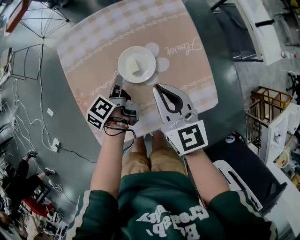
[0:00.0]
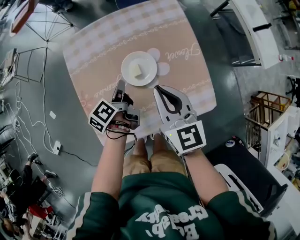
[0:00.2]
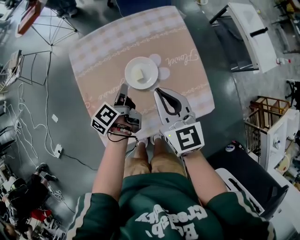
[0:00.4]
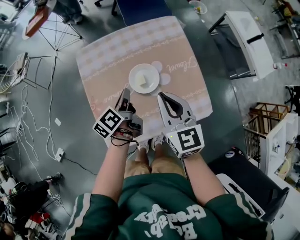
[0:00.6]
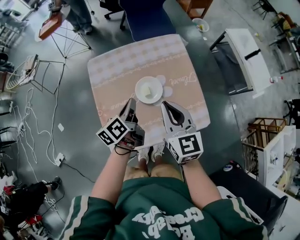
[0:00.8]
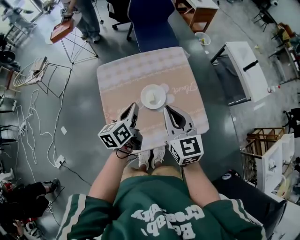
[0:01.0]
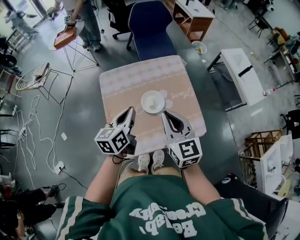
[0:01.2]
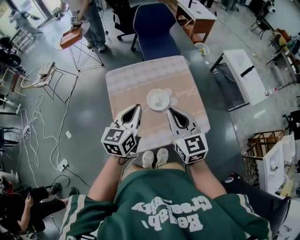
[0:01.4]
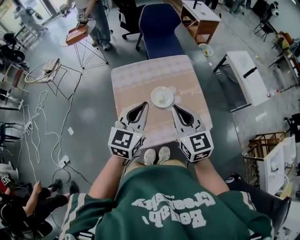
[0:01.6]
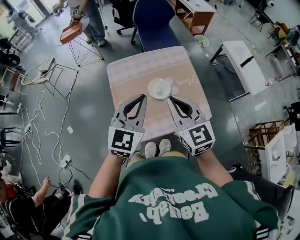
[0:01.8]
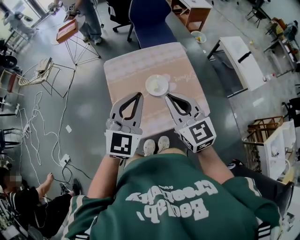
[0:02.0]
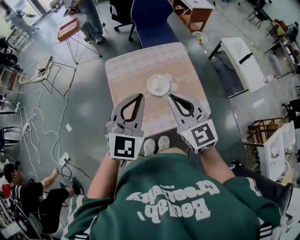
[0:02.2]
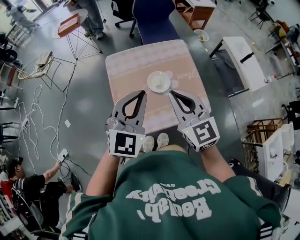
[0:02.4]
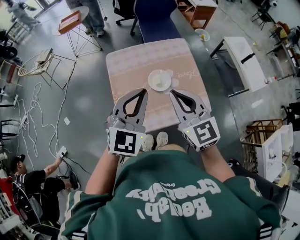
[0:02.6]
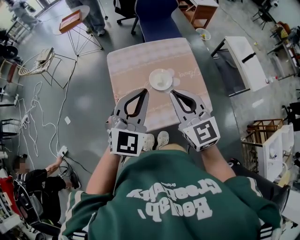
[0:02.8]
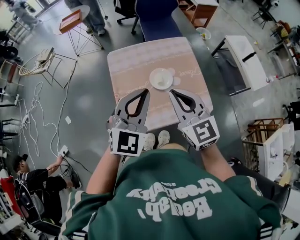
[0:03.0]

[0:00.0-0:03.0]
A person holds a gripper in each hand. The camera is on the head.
0:00.0 to 0:01.6: The right gripper shifts some 20 cm upward.

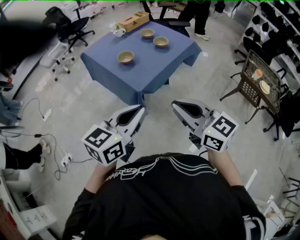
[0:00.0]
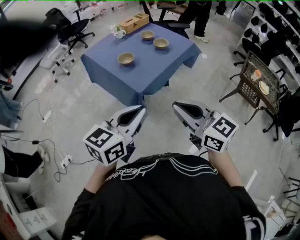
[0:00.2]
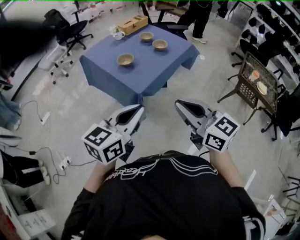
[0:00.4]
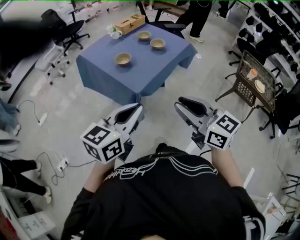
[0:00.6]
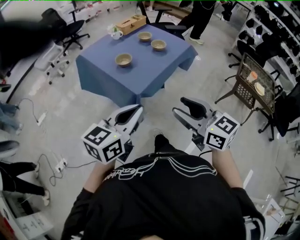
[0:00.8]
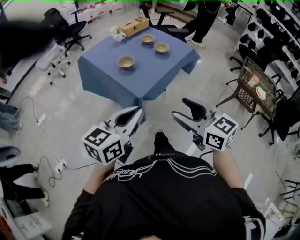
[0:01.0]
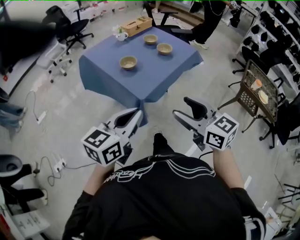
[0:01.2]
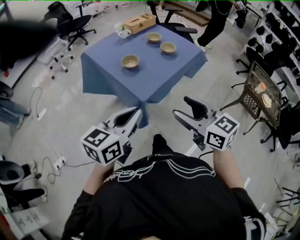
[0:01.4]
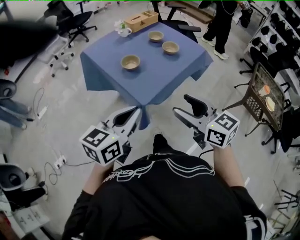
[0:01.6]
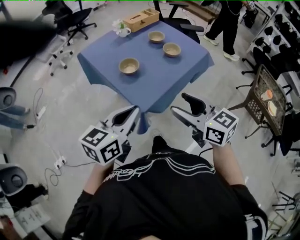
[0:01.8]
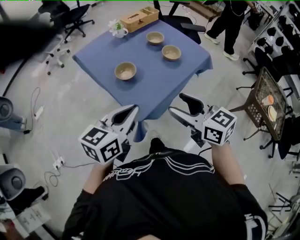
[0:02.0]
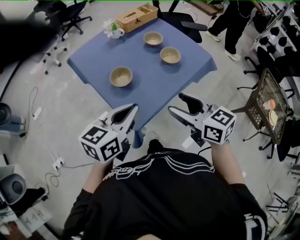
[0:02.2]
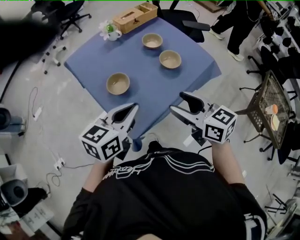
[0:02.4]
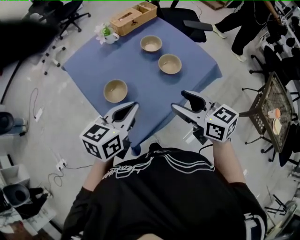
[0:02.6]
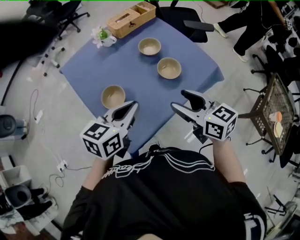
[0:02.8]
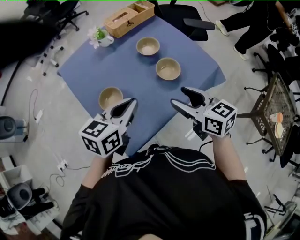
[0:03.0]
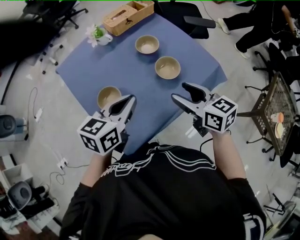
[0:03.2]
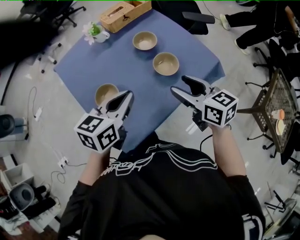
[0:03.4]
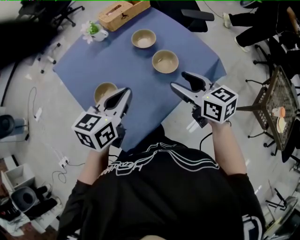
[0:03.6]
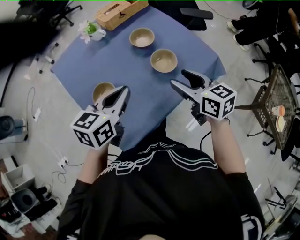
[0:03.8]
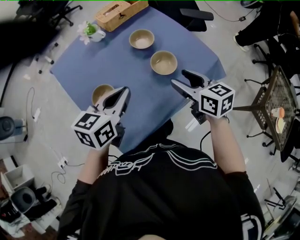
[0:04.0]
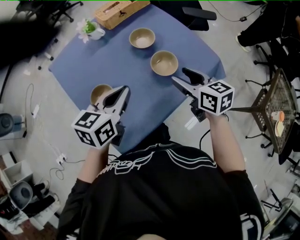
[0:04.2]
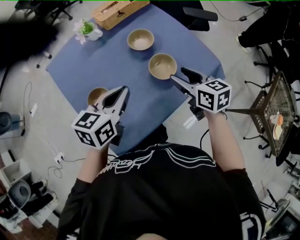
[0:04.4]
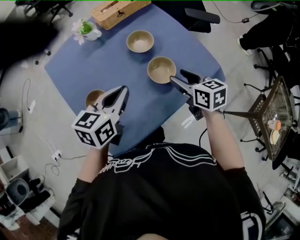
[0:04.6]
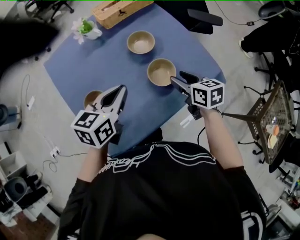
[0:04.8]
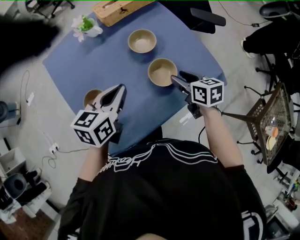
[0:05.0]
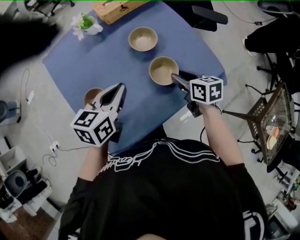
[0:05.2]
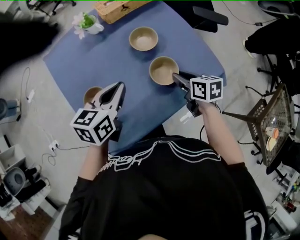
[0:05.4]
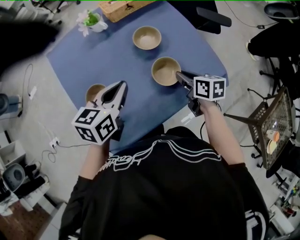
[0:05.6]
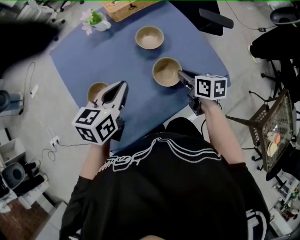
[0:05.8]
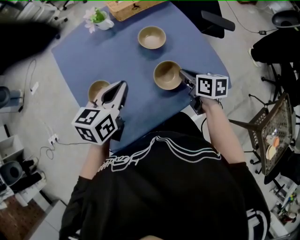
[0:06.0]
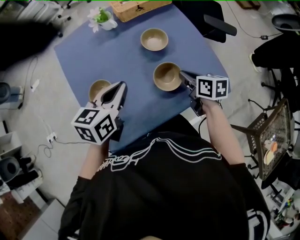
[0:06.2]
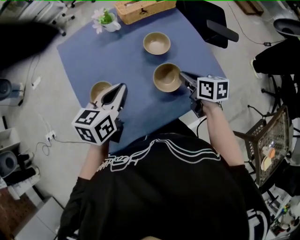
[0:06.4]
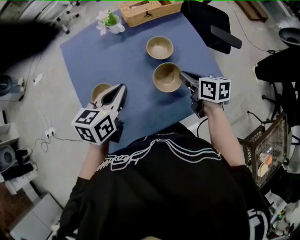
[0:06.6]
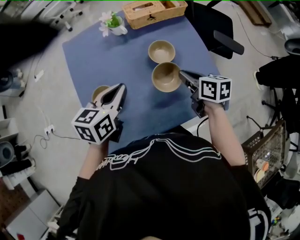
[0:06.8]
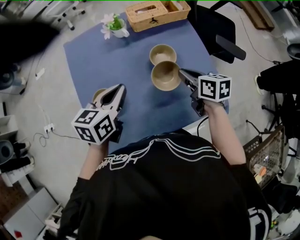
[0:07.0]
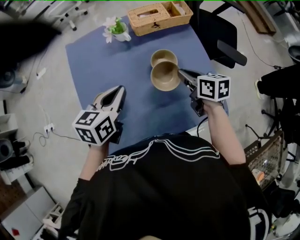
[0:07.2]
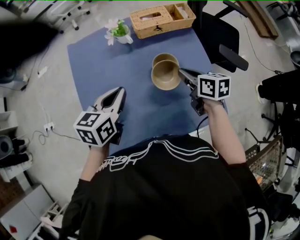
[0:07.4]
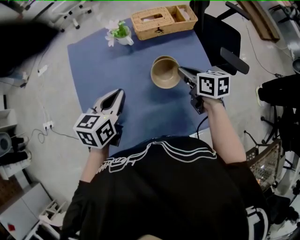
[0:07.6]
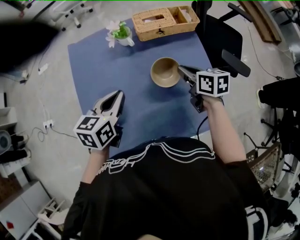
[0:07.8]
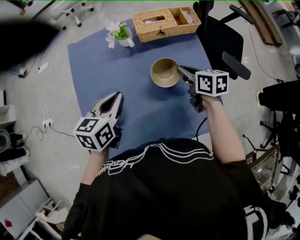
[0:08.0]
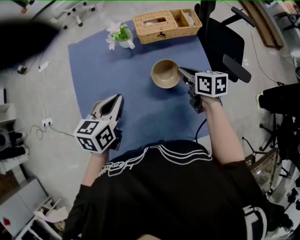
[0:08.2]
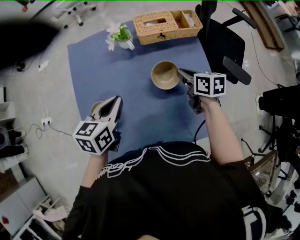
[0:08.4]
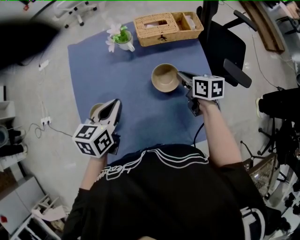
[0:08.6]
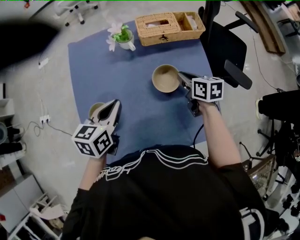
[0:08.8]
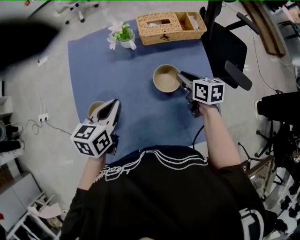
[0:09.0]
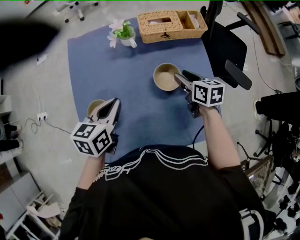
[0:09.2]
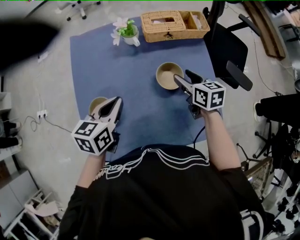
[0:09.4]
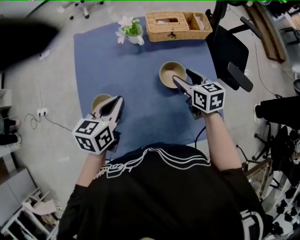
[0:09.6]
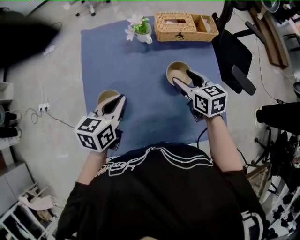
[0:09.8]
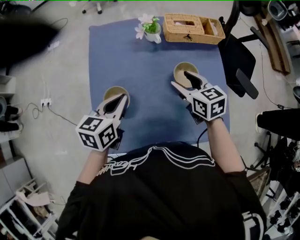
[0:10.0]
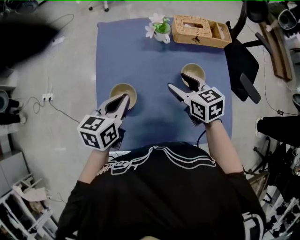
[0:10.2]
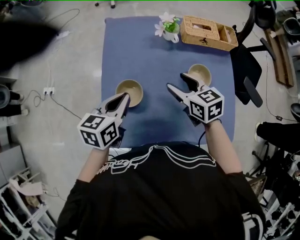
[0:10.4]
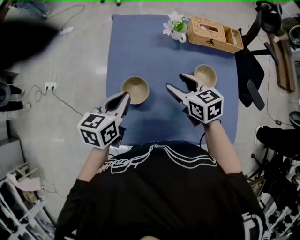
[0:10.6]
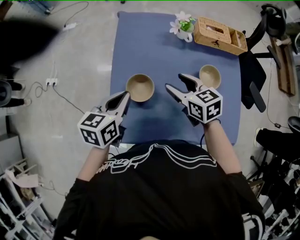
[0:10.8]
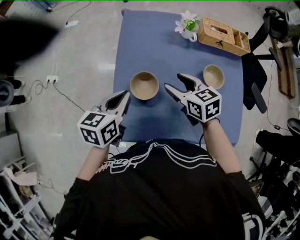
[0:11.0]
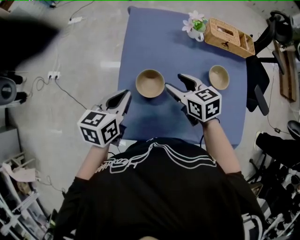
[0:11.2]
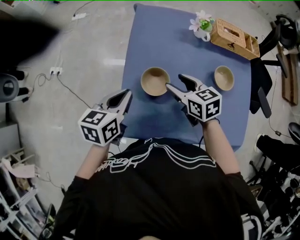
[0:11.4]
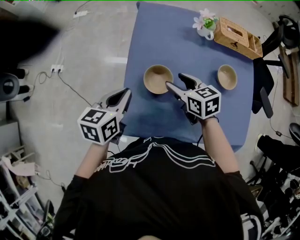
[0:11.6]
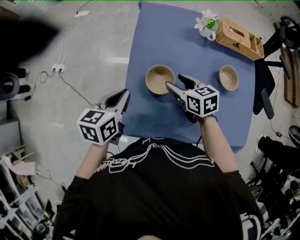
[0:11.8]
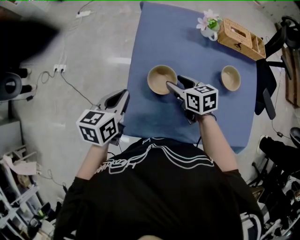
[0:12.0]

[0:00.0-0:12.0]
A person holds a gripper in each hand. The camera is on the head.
0:00.0 to 0:01.6: The right gripper goes about 15 cm forward and downward, and opens its fingers. The left gripper moves forward, downward and to the left, roughly 15 cm.
0:01.6 to 0:03.0: The grippers both shift forward by roughly 35 cm.
0:03.0 to 0:04.4: The left gripper shifts approximately 5 cm forward. Meanwhile the right gripper is displaced forward, downward and to the right by roughly 15 cm.
0:04.4 to 0:06.0: The right gripper shifts some 10 cm downward and forward, and closes up.
0:06.0 to 0:07.6: The left gripper goes some 10 cm forward. The right gripper is displaced forward and upward by about 20 cm.
0:07.6 to 0:09.0: The right gripper changes place by about 5 cm.
0:09.0 to 0:10.4: The right gripper shifts some 20 cm to the left, swivels some 30 degrees, and opens its fingers. Meanwhile the left gripper shifts about 15 cm to the left and backward.
0:10.4 to 0:12.0: The left gripper shifts about 15 cm to the left. Meanwhile the right gripper travels to the left and downward by approximately 15 cm.

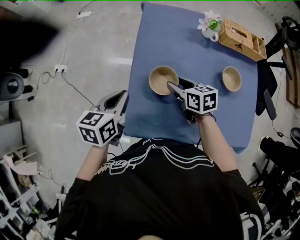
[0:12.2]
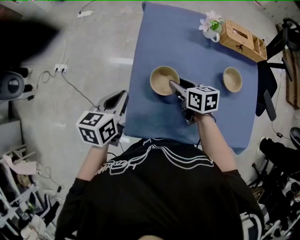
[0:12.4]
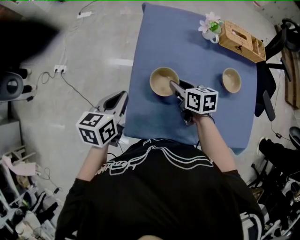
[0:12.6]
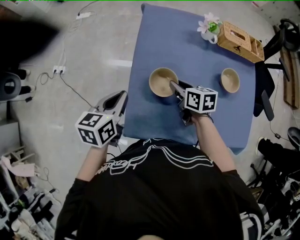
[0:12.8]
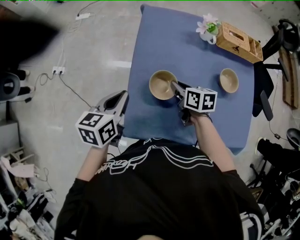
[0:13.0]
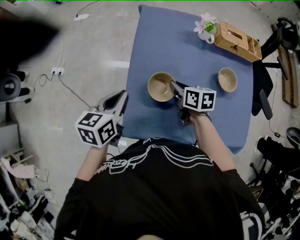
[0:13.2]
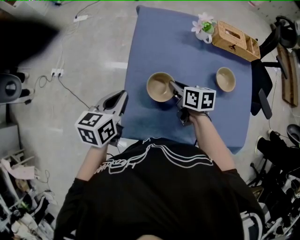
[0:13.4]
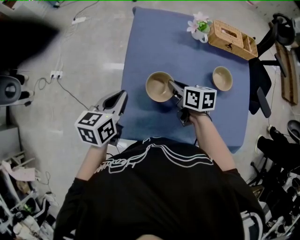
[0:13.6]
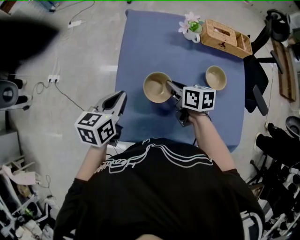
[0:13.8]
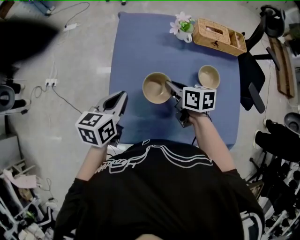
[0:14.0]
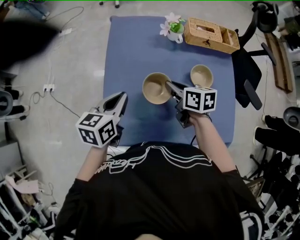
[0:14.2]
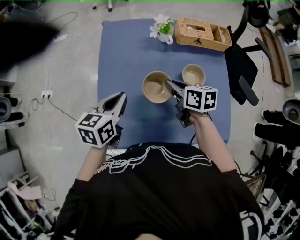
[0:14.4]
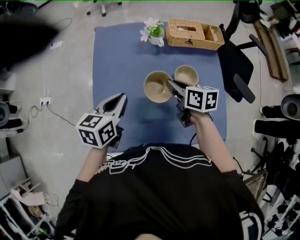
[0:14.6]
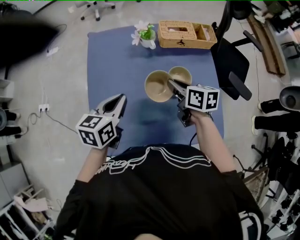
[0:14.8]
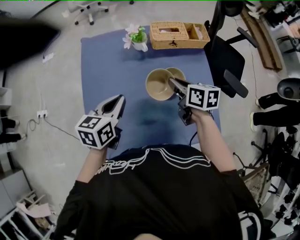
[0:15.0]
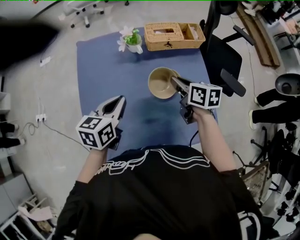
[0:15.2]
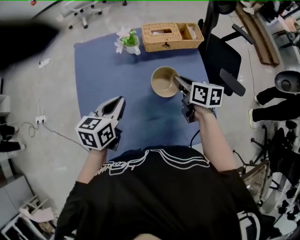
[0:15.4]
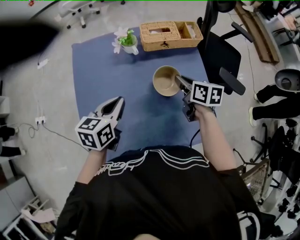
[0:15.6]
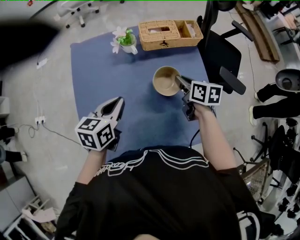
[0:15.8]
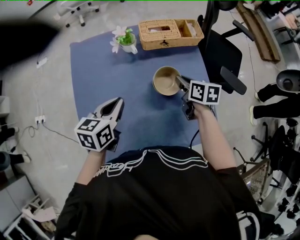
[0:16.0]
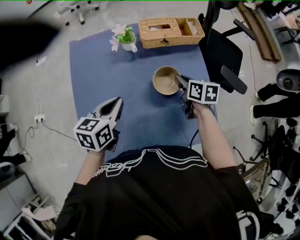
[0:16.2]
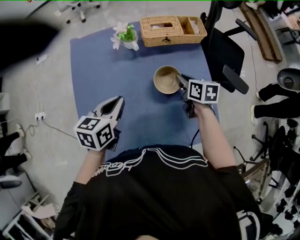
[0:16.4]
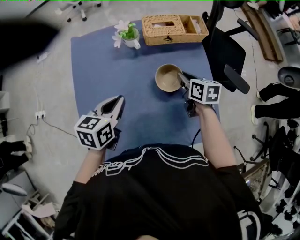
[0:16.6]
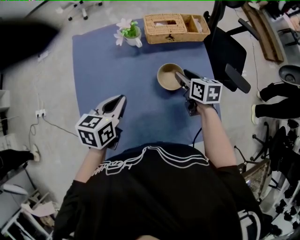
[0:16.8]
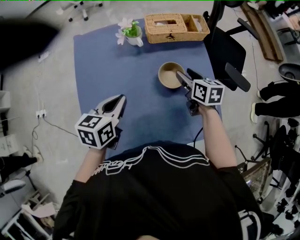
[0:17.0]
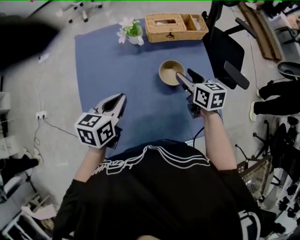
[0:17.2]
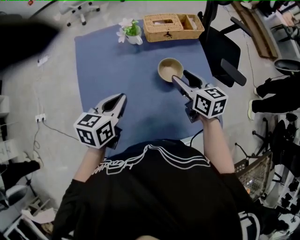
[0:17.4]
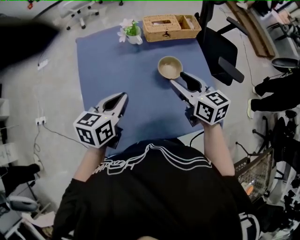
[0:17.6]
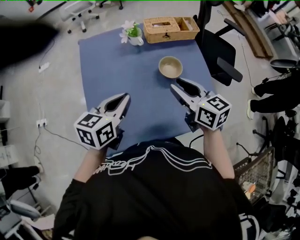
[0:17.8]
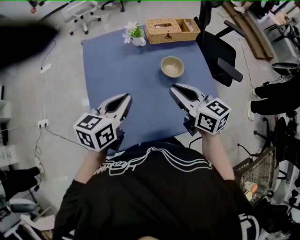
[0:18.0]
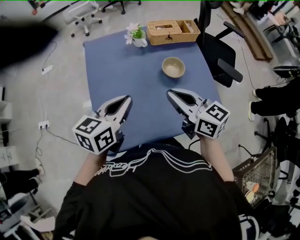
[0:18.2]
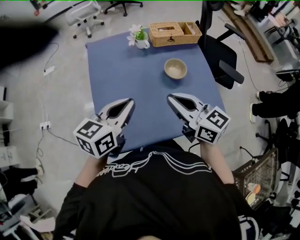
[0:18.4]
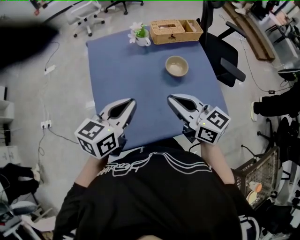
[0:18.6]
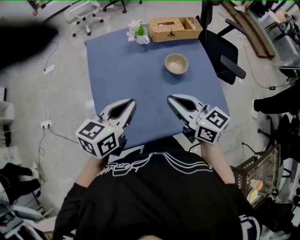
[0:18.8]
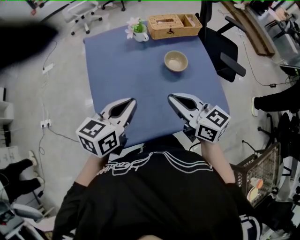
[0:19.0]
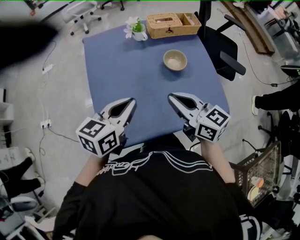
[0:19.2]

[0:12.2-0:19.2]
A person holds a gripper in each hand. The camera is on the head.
0:12.2 to 0:13.6: The right gripper closes.
0:13.6 to 0:15.0: The grippers both shift to the right by about 20 cm.
0:15.0 to 0:16.4: The right gripper moves to the right and downward, some 10 cm.
0:16.4 to 0:17.8: The left gripper goes about 10 cm backward and upward. Meanwhile the right gripper moves backward, upward and to the left, about 25 cm, swivels roughly 30 degrees, and opens up.
0:17.8 to 0:19.2: The left gripper heads backward, covering approximately 5 cm; the right gripper moves backward and to the left, approximately 10 cm, and closes its fingers.

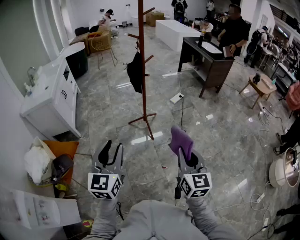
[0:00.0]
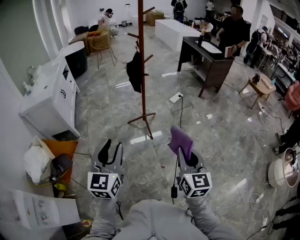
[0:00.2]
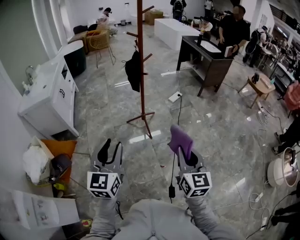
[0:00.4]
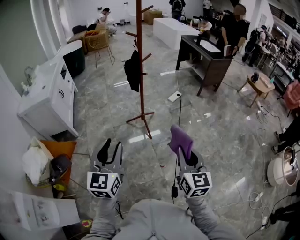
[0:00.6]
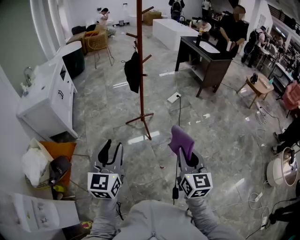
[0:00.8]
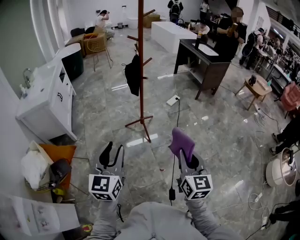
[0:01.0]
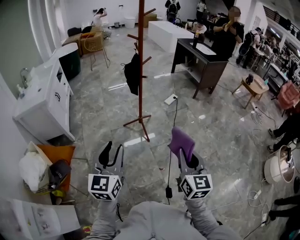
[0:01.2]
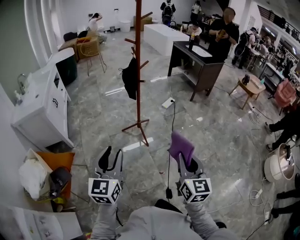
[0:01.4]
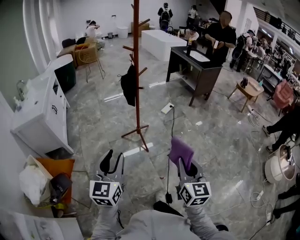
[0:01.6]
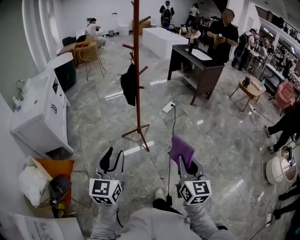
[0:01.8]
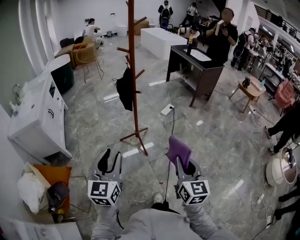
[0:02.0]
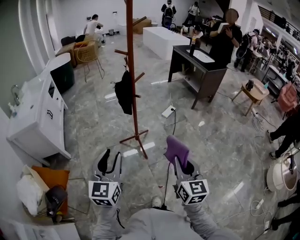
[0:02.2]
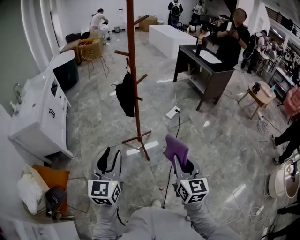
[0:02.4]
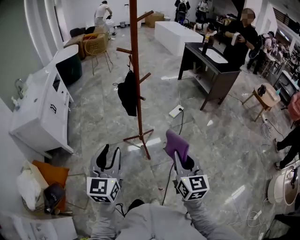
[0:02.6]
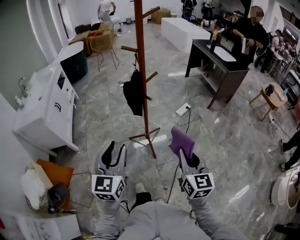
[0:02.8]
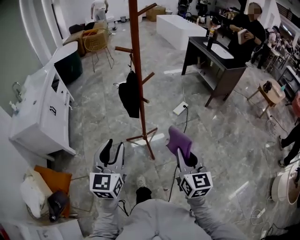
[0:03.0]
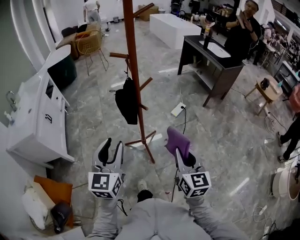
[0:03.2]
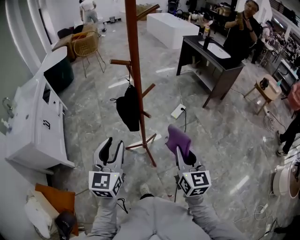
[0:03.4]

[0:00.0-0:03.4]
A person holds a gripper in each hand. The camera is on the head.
0:00.0 to 0:01.6: The left gripper shifts by roughly 5 cm.
0:01.6 to 0:03.4: Both grippers move forward, approximately 40 cm.
